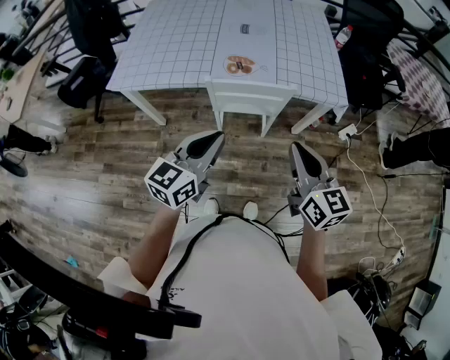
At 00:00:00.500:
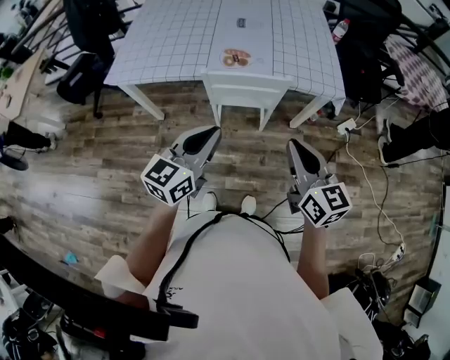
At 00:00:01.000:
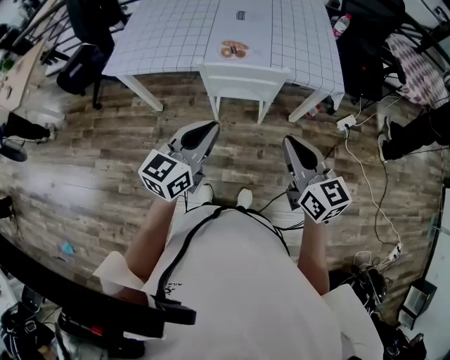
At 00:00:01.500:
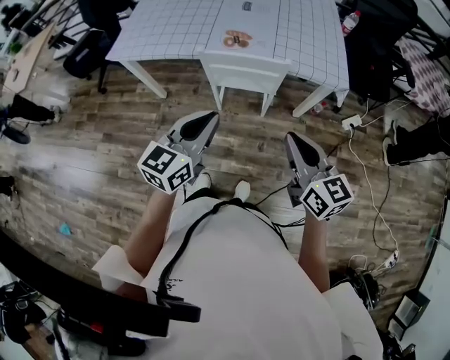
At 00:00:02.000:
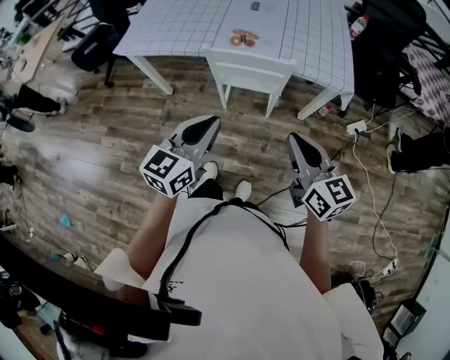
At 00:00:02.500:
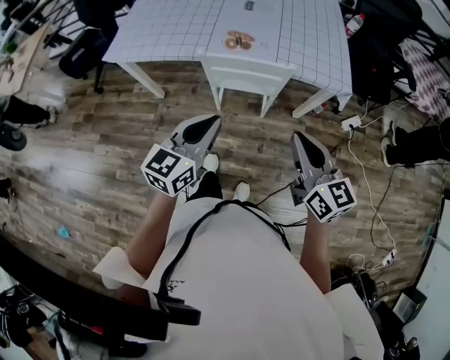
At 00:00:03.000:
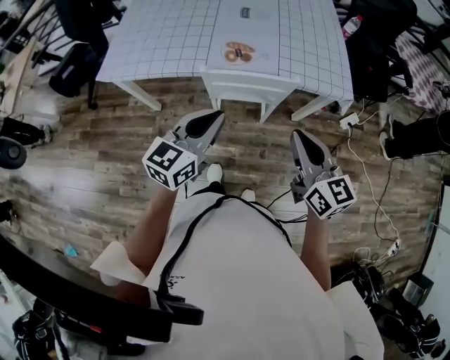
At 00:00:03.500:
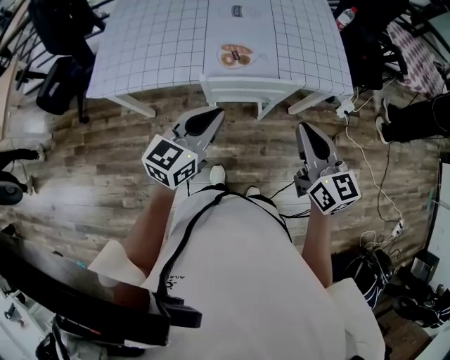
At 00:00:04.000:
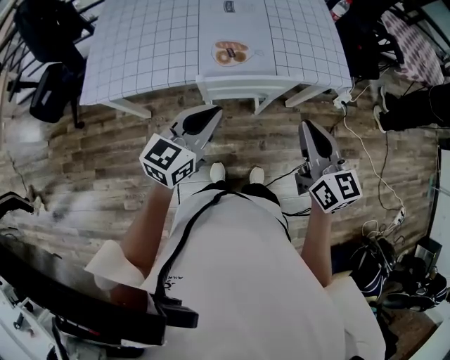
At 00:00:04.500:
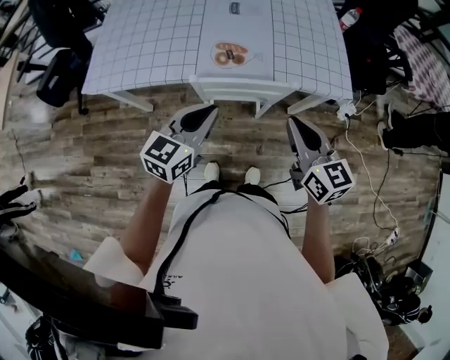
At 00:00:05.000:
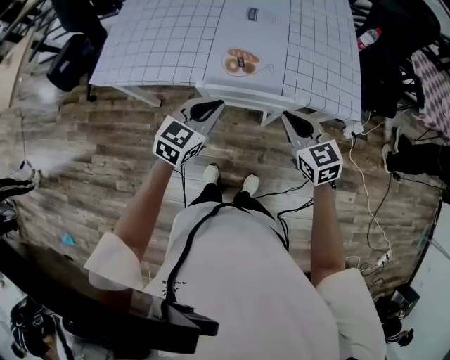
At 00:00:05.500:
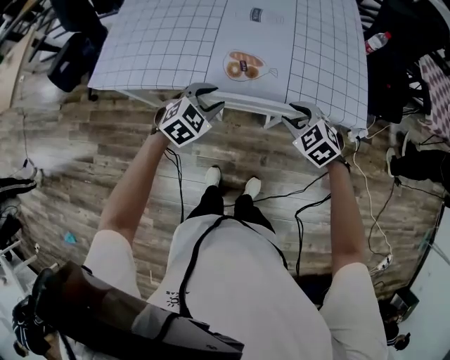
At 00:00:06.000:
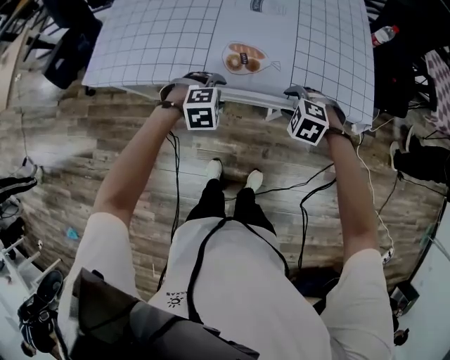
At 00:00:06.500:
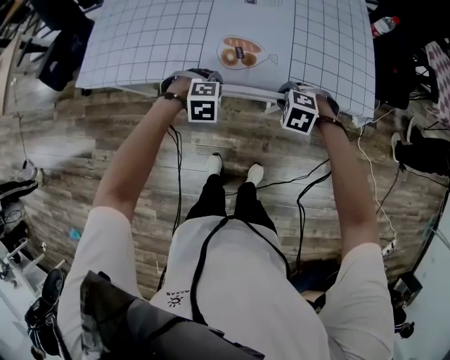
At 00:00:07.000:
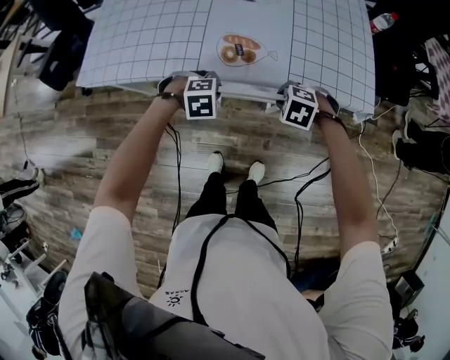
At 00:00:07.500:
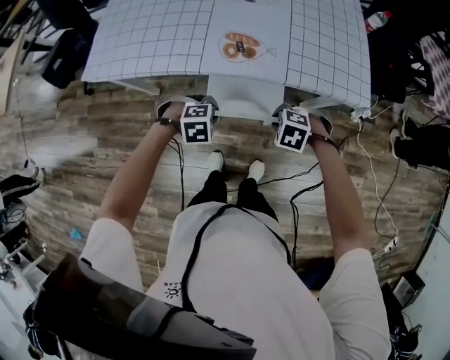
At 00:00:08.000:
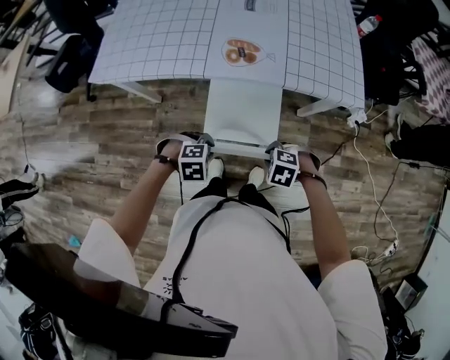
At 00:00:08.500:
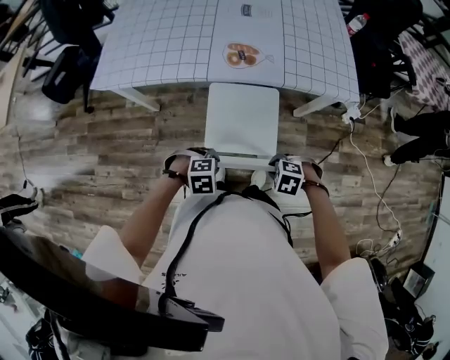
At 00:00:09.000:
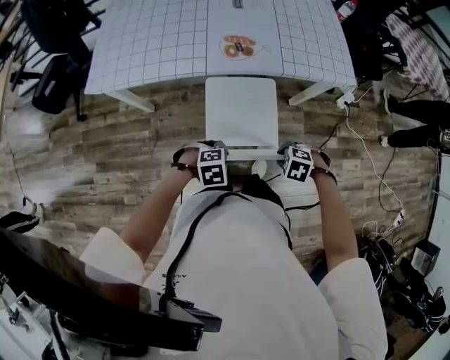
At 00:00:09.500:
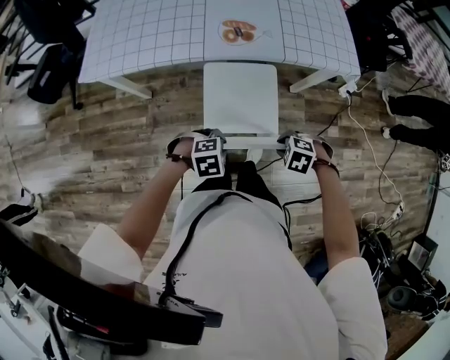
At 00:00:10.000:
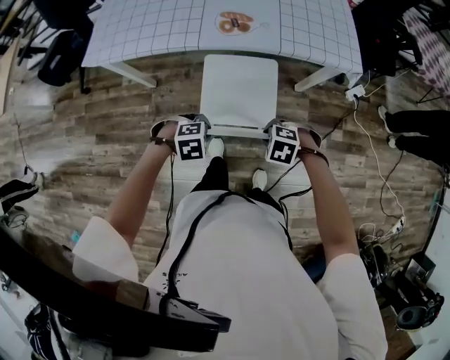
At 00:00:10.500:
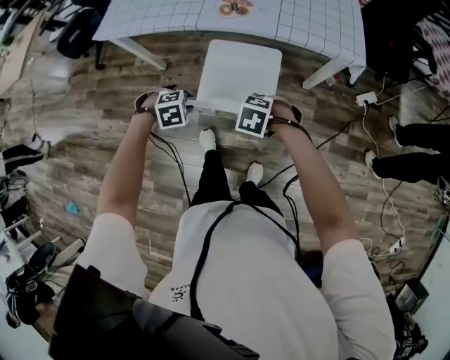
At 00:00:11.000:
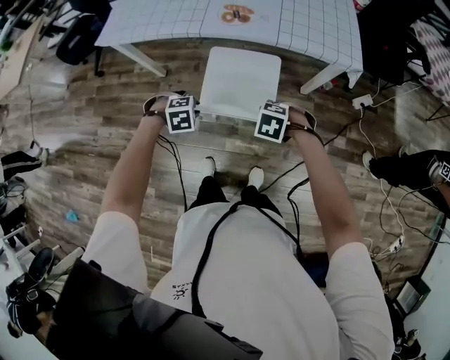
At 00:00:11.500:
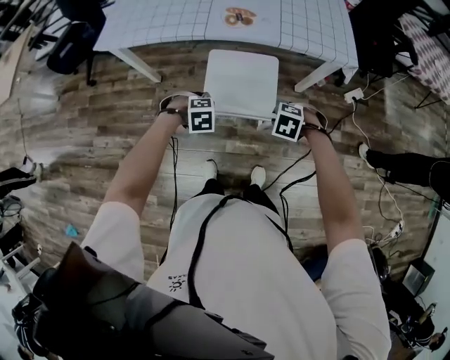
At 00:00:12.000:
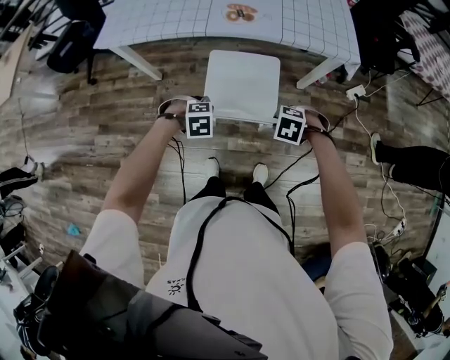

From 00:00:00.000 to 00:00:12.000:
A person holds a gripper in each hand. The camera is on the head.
From 00:00:00.000 to 00:00:02.000: The left gripper goes about 10 cm to the right and backward. The right gripper moves to the right, approximately 5 cm.
From 00:00:02.000 to 00:00:04.000: Both grippers move forward and to the left, roughly 20 cm. The right gripper changes its angle by about 20 degrees.
From 00:00:04.000 to 00:00:06.000: The two grippers go some 30 cm downward and forward. The left gripper points its fingers about 60 degrees further downward, and opens its fingers; the right gripper angles its fingers downward, by some 60 degrees, and opens.
From 00:00:06.000 to 00:00:08.000: The left gripper shifts by roughly 25 cm, and closes; the right gripper moves roughly 25 cm, and closes its fingers.
From 00:00:08.000 to 00:00:10.000: The left gripper moves some 5 cm; the right gripper moves some 5 cm.
From 00:00:10.000 to 00:00:12.000: The right gripper shifts by some 5 cm.

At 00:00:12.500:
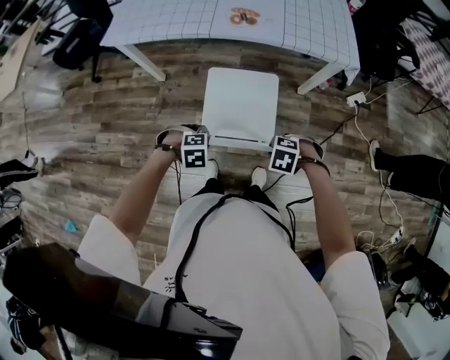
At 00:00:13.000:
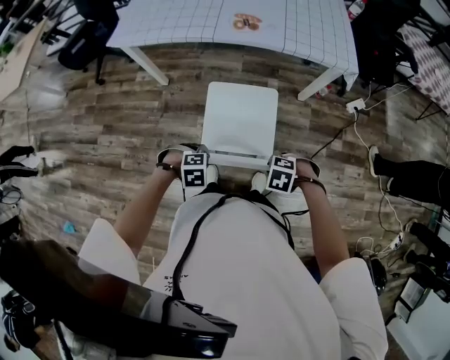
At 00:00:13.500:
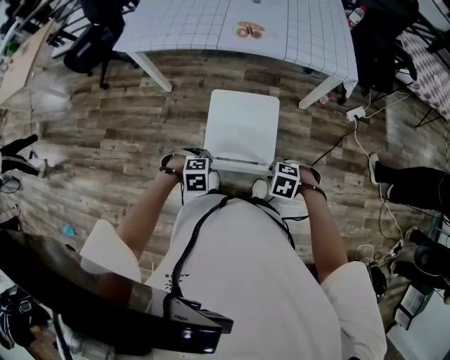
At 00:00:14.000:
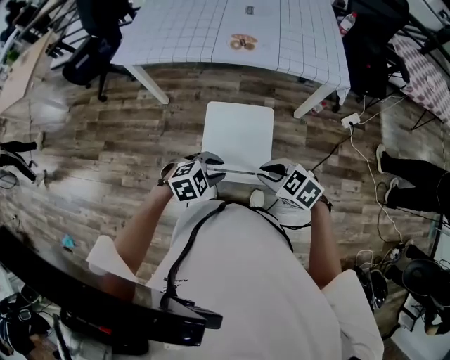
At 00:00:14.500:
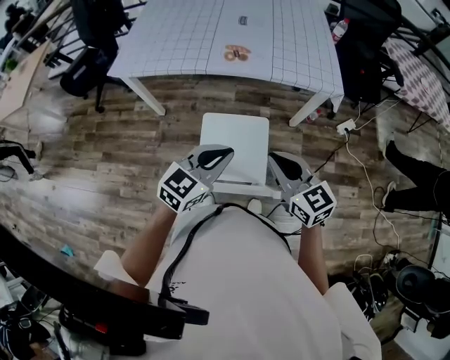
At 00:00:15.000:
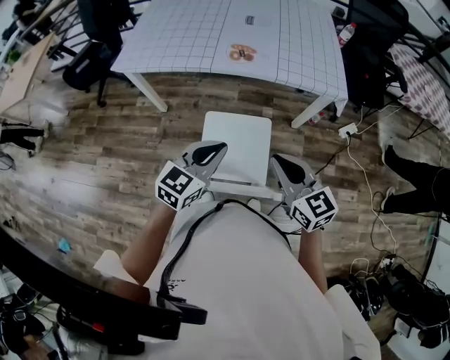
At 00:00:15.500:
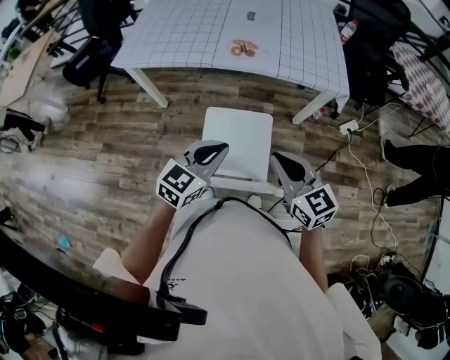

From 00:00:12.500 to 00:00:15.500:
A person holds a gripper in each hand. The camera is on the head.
From 00:00:12.500 to 00:00:14.000: The two grippers go approximately 10 cm upward. The left gripper changes its angle by roughly 30 degrees. The right gripper tilts its fingers approximately 30 degrees upward.
From 00:00:14.000 to 00:00:15.500: The two grippers go about 10 cm upward. The right gripper tilts its fingers about 30 degrees upward. Meanwhile the left gripper points its fingers some 30 degrees further upward, and closes.

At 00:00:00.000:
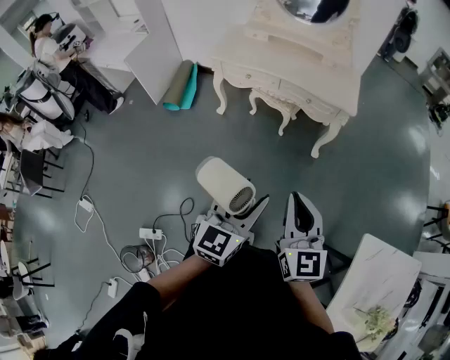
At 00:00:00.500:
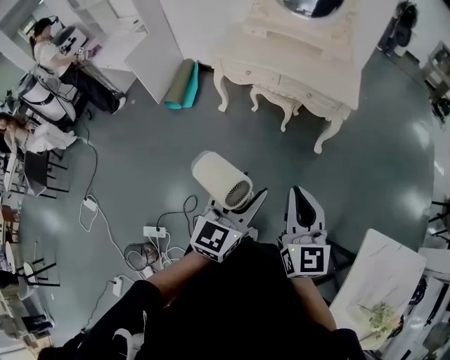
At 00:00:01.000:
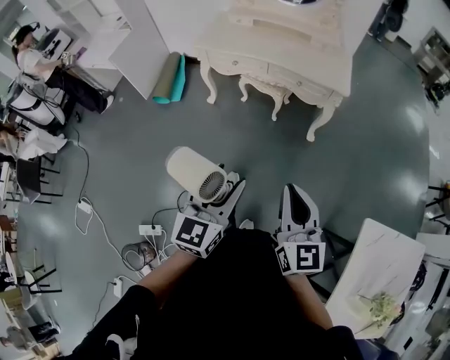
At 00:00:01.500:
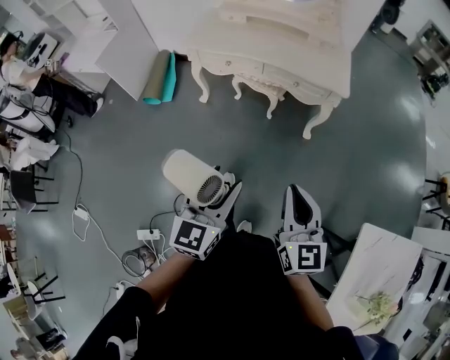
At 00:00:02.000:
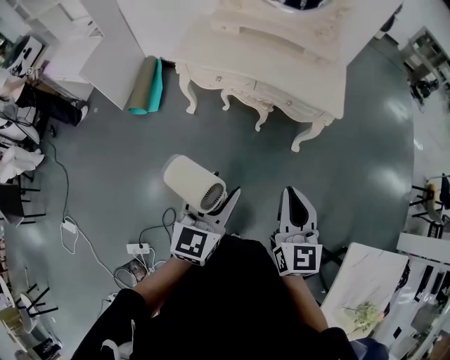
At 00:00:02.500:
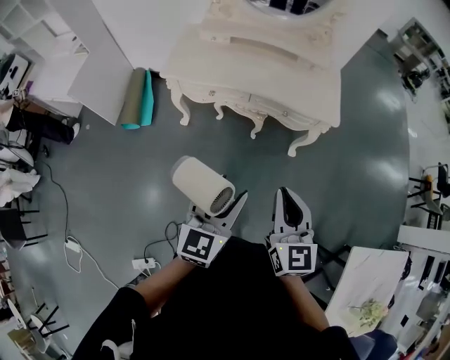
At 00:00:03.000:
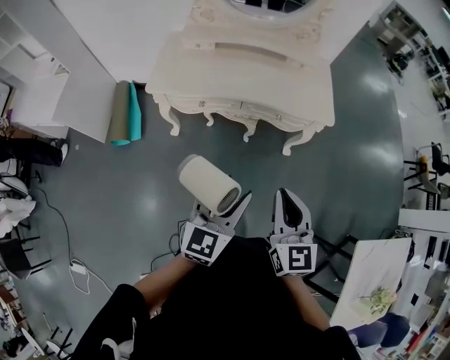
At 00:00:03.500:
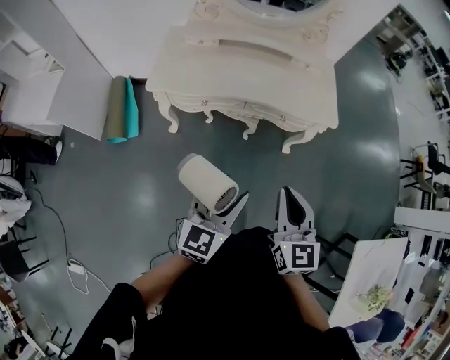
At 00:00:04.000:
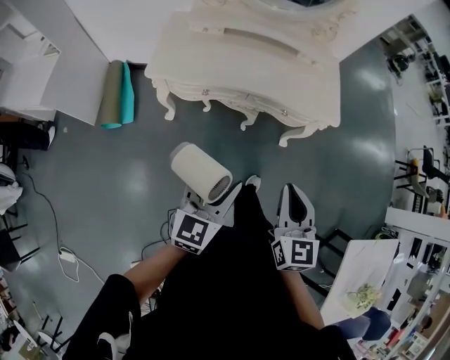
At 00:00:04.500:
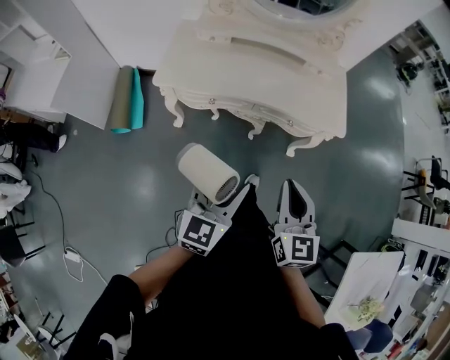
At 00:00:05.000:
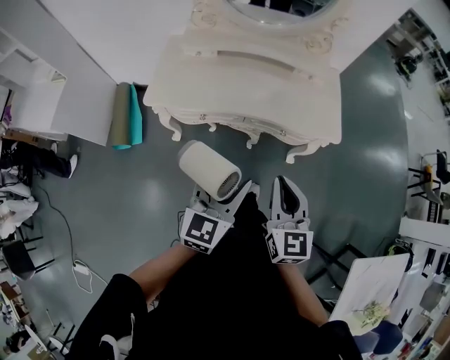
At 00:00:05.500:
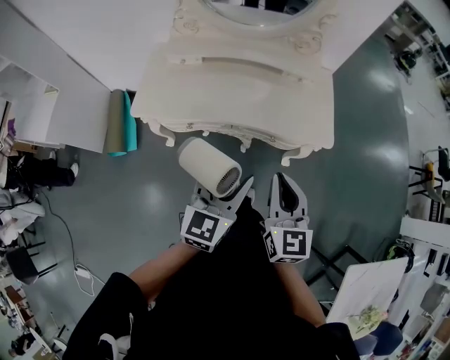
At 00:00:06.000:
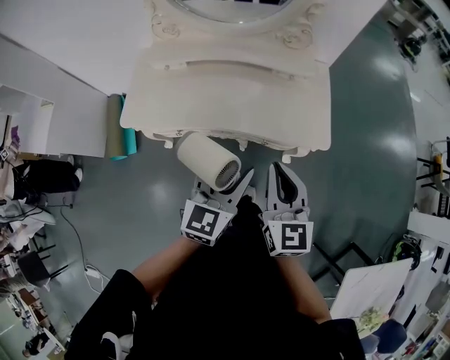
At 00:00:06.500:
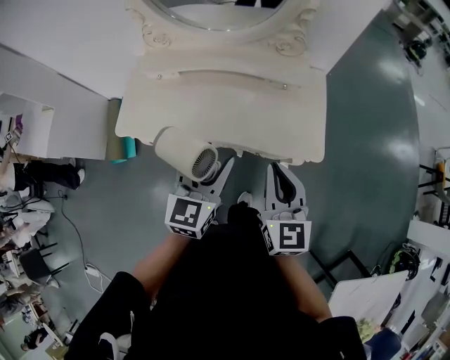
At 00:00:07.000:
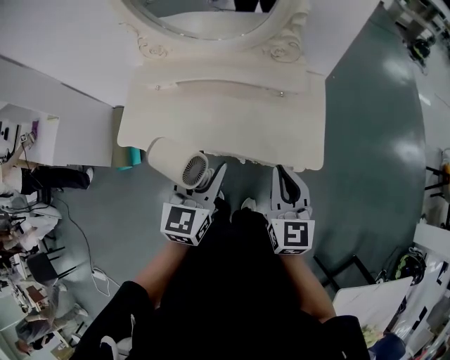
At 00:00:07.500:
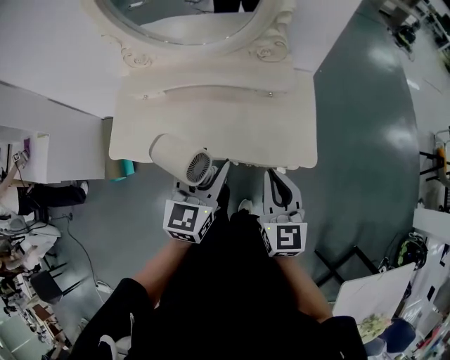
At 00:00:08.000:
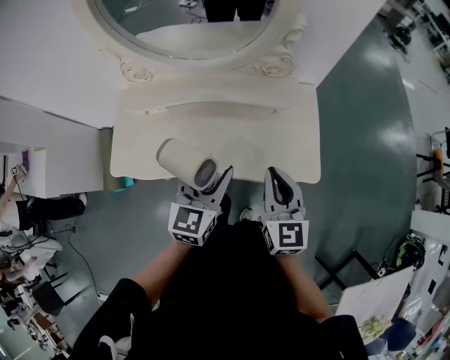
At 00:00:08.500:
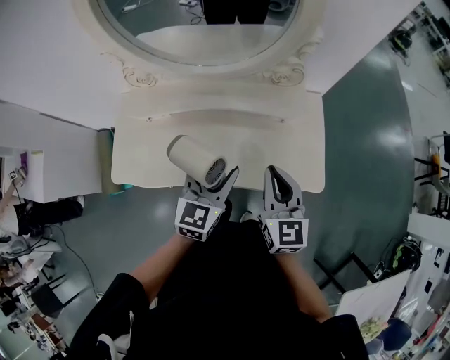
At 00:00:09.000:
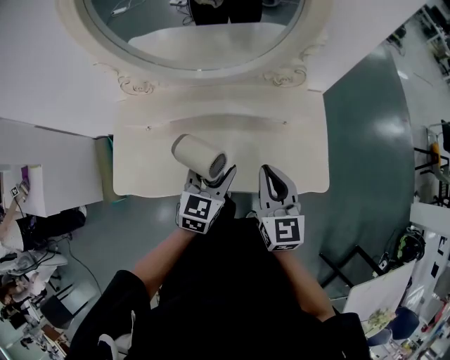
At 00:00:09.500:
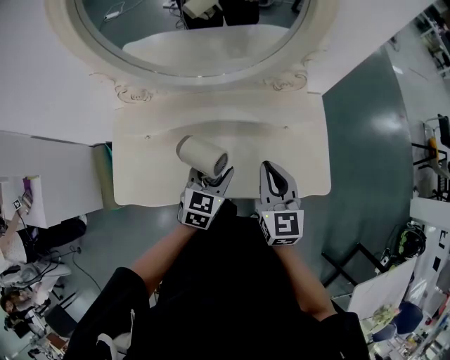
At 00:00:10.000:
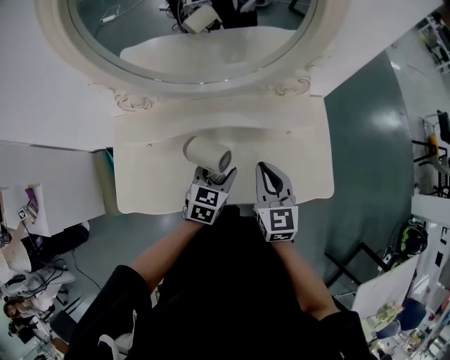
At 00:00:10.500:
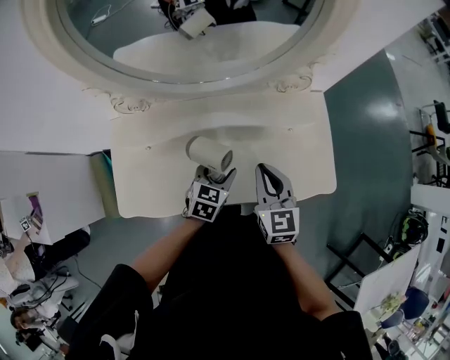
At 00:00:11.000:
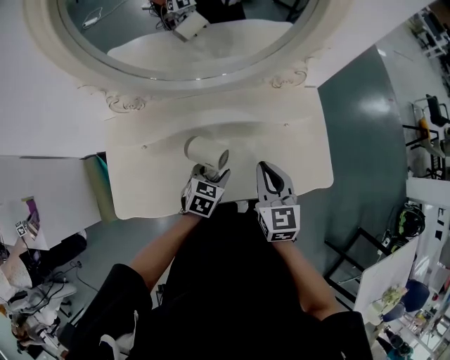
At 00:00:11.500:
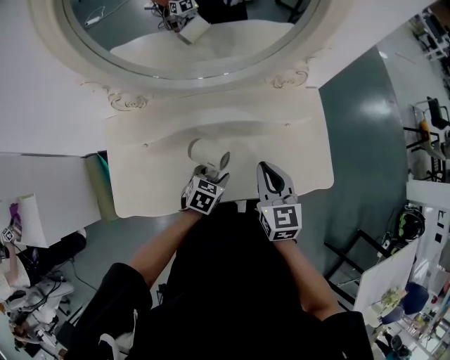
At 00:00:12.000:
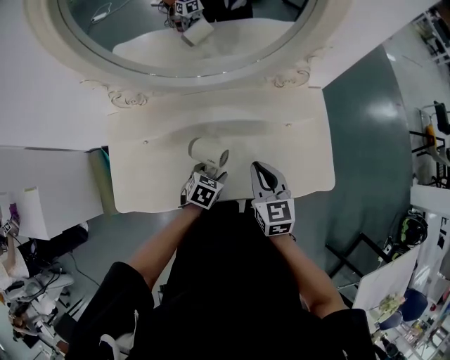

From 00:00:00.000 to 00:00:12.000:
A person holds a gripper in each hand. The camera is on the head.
From 00:00:00.000 to 00:00:02.000: The two grippers go approximately 15 cm forward.
From 00:00:02.000 to 00:00:04.000: Both grippers travel together forward and to the left, approximately 20 cm.
From 00:00:04.000 to 00:00:06.000: The right gripper goes roughly 25 cm forward, while the left gripper heads forward and to the right, covering roughly 25 cm.
From 00:00:06.000 to 00:00:08.000: Both grippers move forward, approximately 15 cm.
From 00:00:08.000 to 00:00:10.000: The right gripper goes some 15 cm forward, to the left and downward. The left gripper heads downward, forward and to the left, covering roughly 20 cm, and turns by roughly 20 degrees.
From 00:00:10.000 to 00:00:12.000: The left gripper is displaced downward by roughly 10 cm, and swivels some 20 degrees. Meanwhile the right gripper ends up some 5 cm from where it was.
